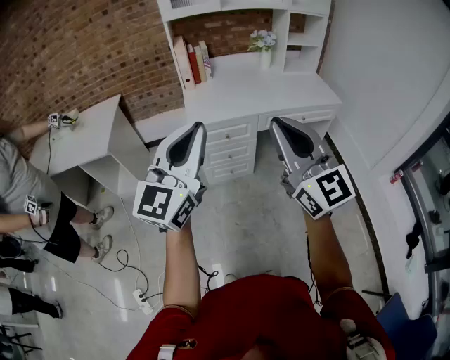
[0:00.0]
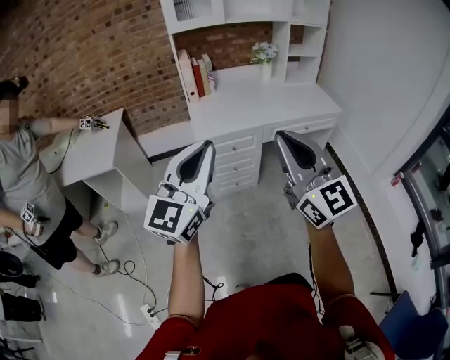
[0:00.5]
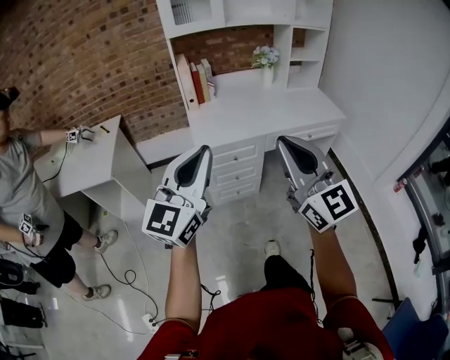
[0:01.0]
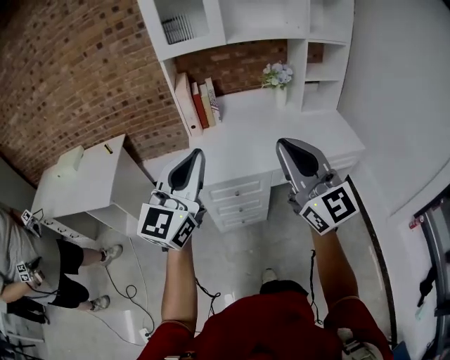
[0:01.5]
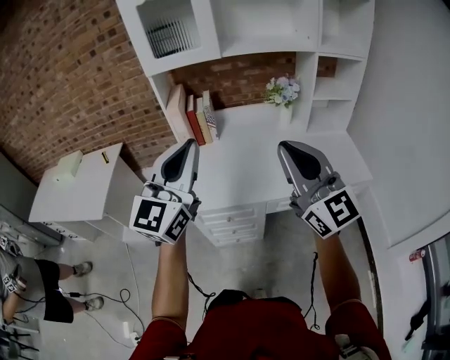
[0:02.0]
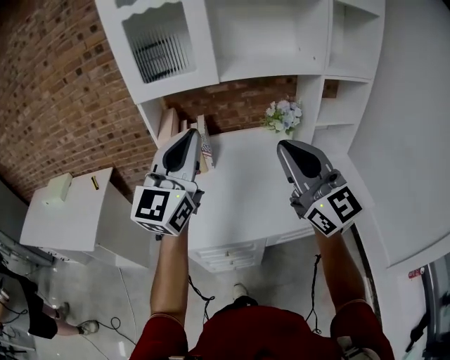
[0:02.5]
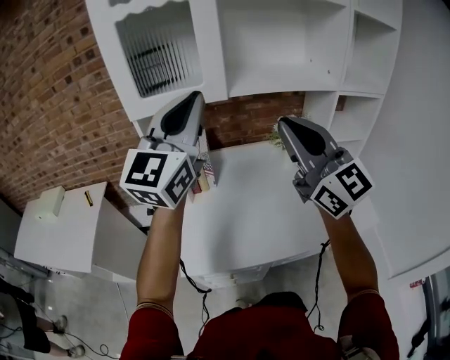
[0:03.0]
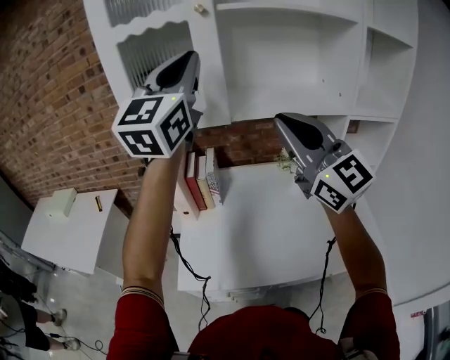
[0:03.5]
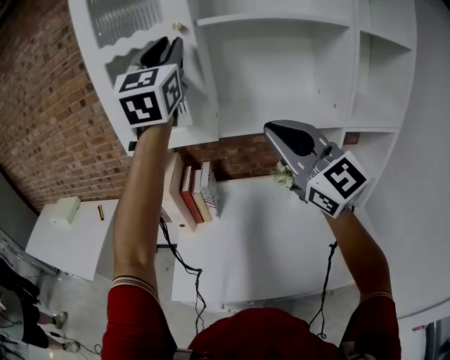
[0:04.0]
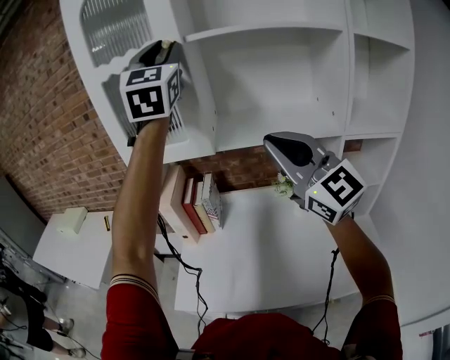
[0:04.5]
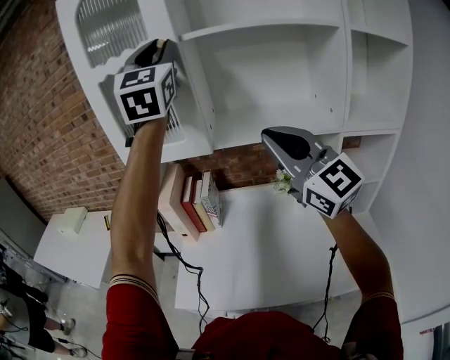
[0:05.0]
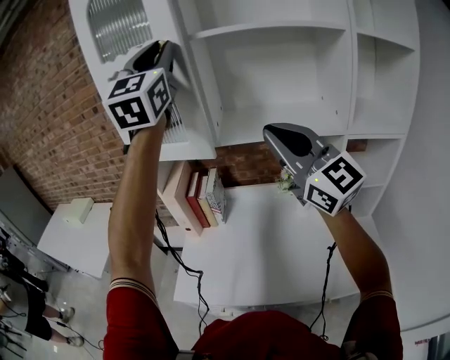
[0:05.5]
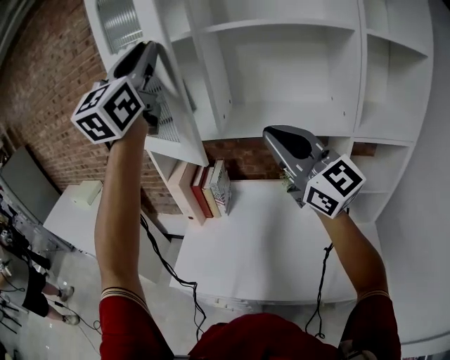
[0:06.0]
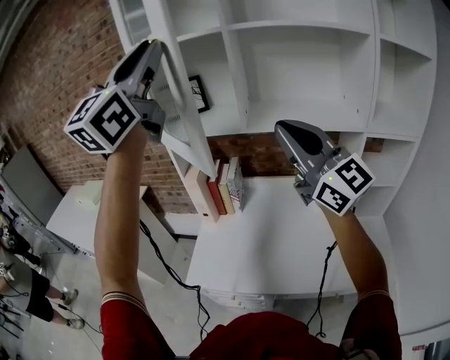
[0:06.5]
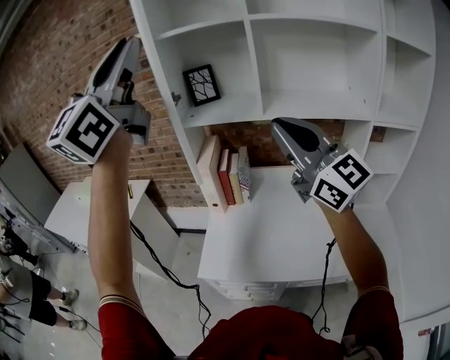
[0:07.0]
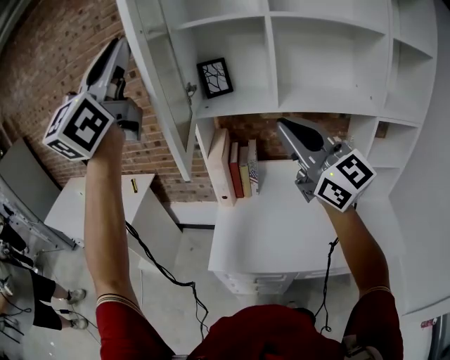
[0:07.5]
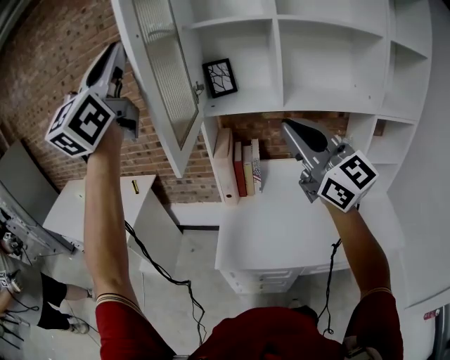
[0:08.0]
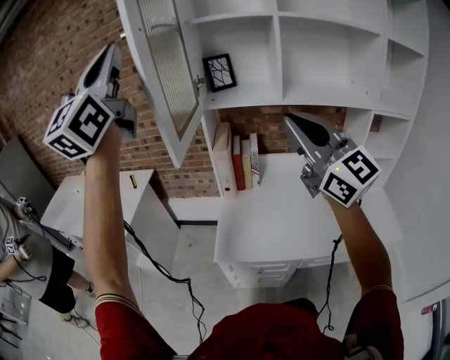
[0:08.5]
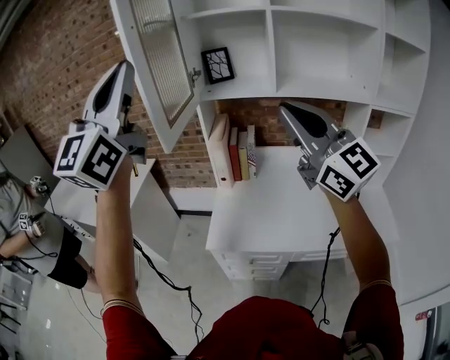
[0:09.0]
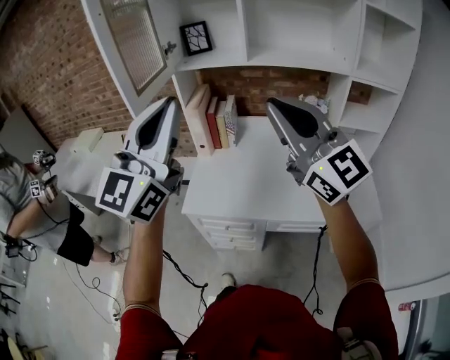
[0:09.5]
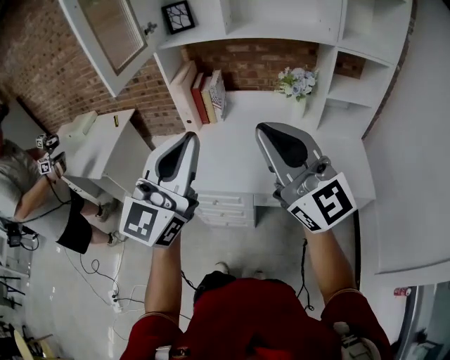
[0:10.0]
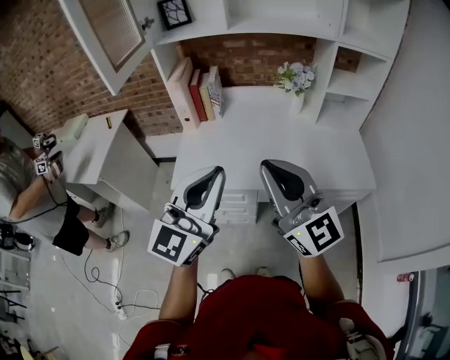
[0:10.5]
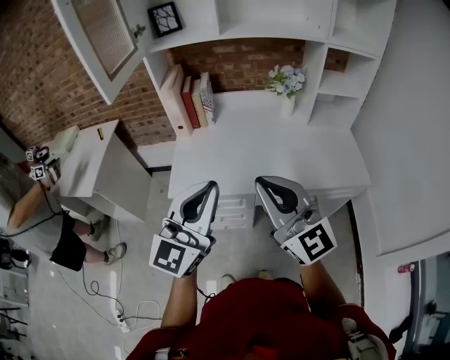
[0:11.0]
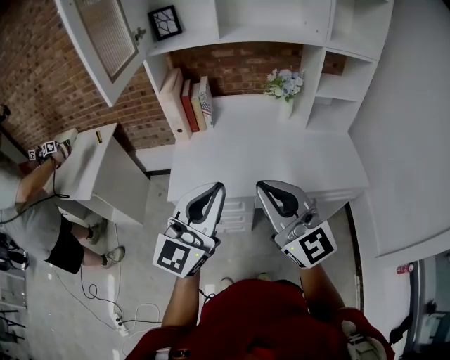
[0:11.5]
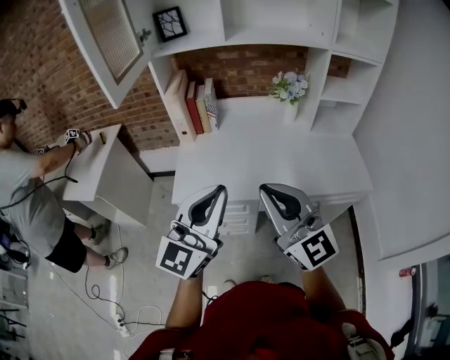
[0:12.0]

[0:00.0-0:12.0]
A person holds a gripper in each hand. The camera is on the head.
0:00.0 to 0:02.0: The grippers both shift forward by roughly 40 cm.
0:02.0 to 0:04.0: Both grippers travel together forward and upward, approximately 40 cm. The left gripper turns by about 30 degrees.
0:04.0 to 0:06.0: The left gripper heads backward, covering approximately 10 cm.
0:06.0 to 0:08.0: The two grippers go approximately 25 cm to the left.
0:08.0 to 0:10.0: The right gripper shifts roughly 25 cm backward, to the right and downward, while the left gripper goes about 50 cm downward, to the right and backward.
0:10.0 to 0:12.0: The left gripper goes some 10 cm downward. The right gripper goes about 15 cm downward and to the left.

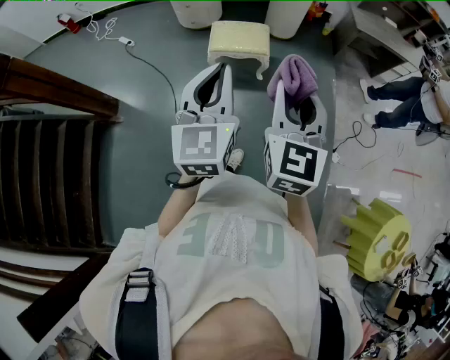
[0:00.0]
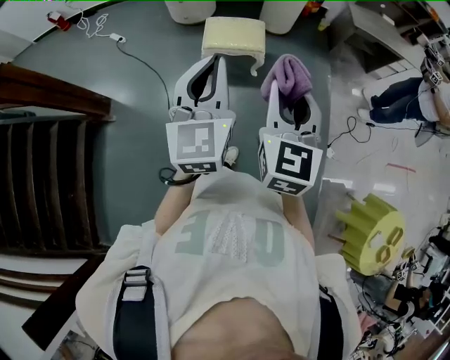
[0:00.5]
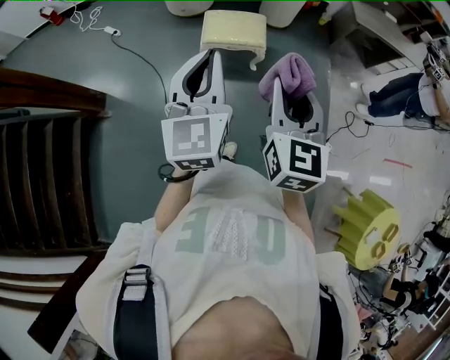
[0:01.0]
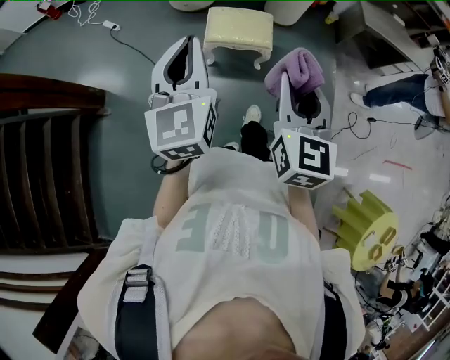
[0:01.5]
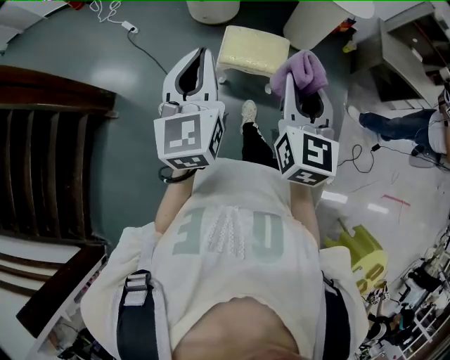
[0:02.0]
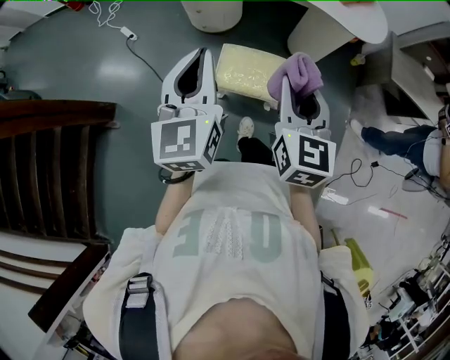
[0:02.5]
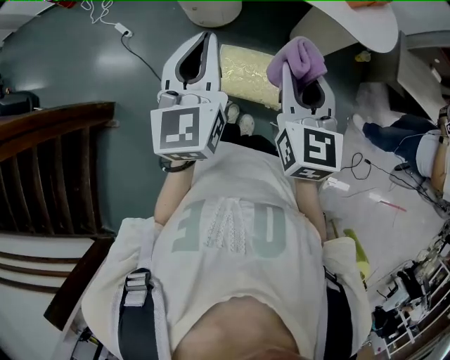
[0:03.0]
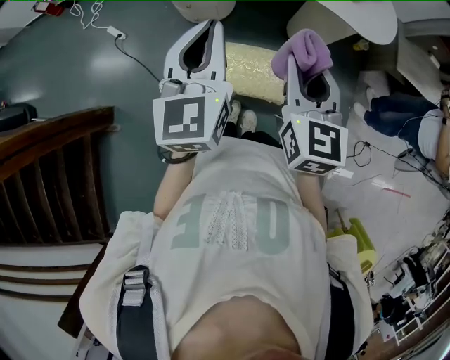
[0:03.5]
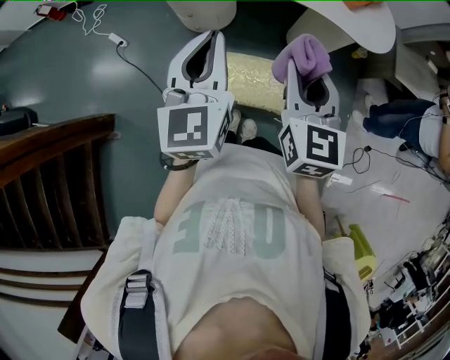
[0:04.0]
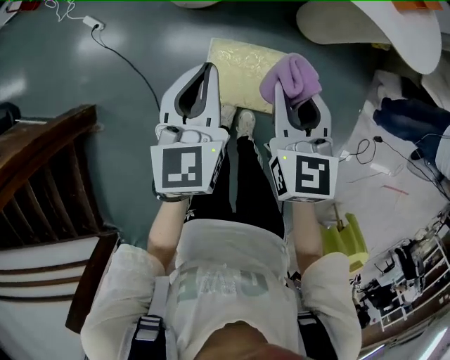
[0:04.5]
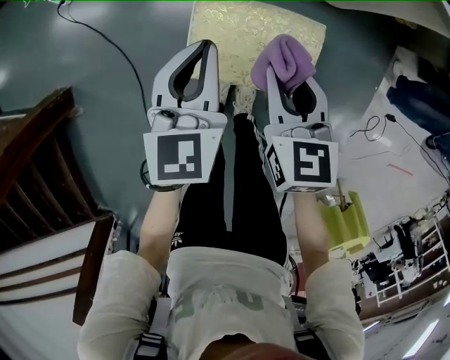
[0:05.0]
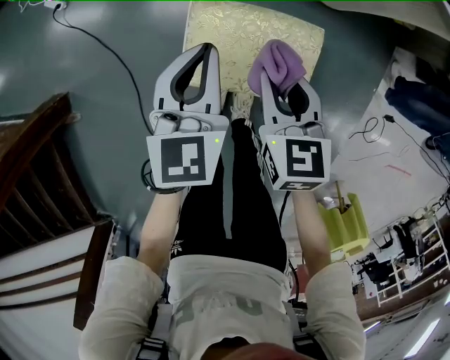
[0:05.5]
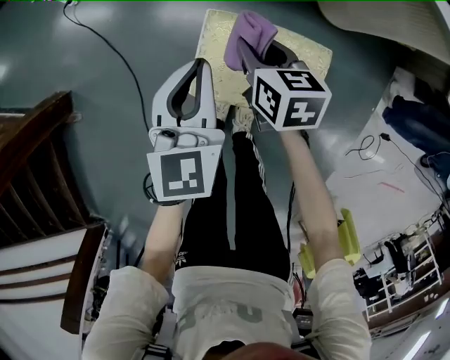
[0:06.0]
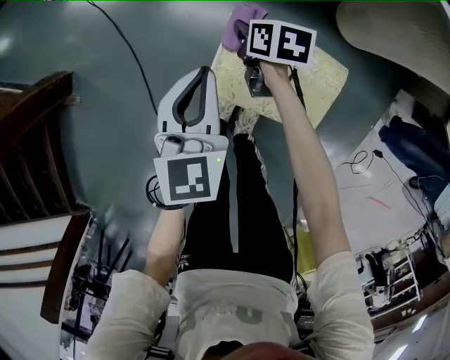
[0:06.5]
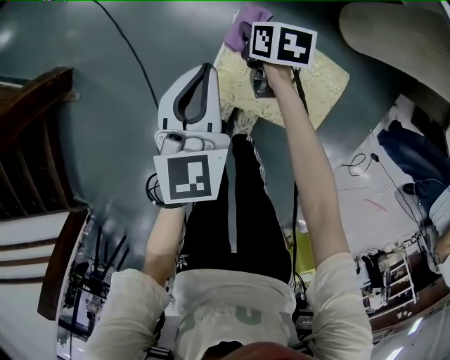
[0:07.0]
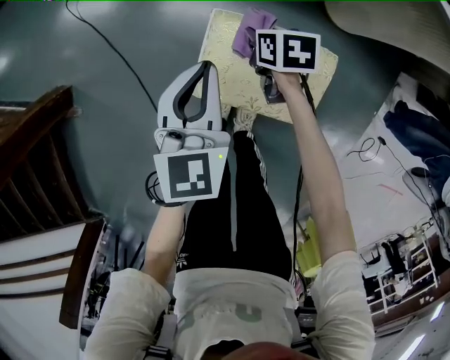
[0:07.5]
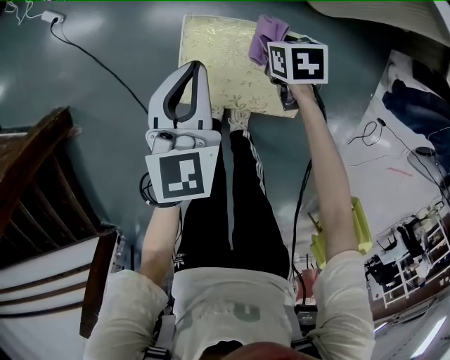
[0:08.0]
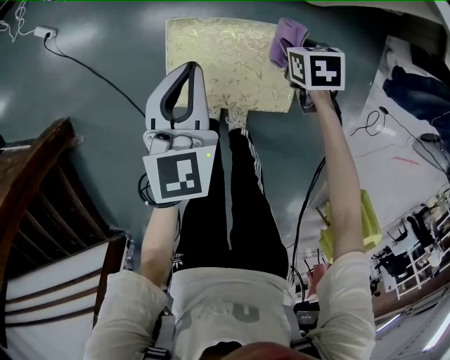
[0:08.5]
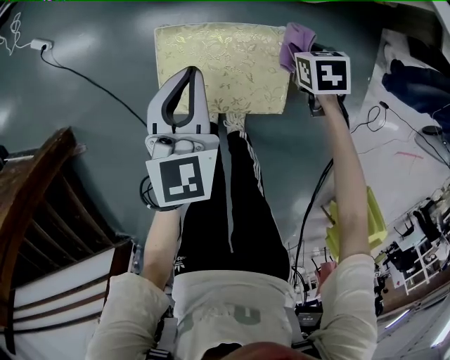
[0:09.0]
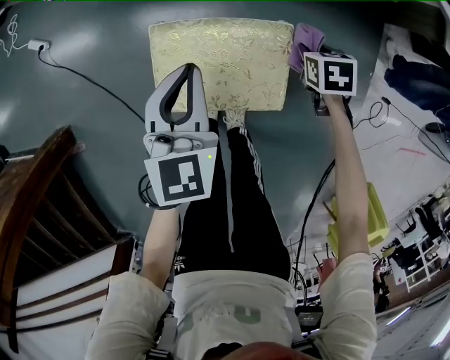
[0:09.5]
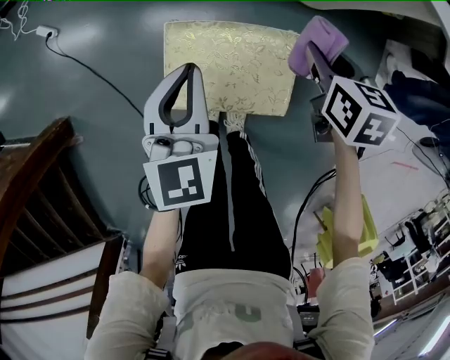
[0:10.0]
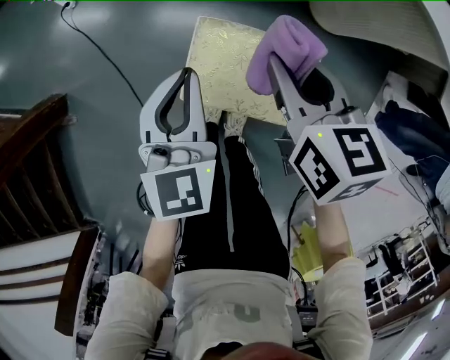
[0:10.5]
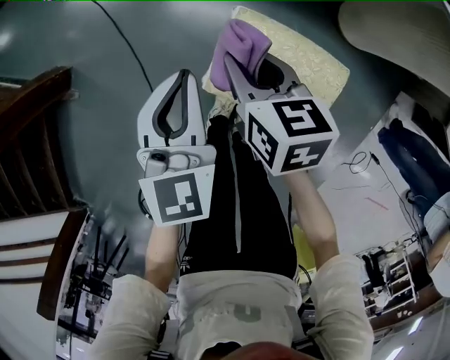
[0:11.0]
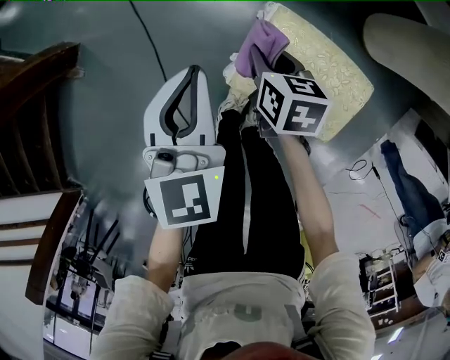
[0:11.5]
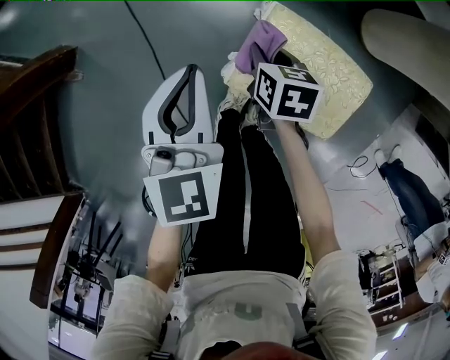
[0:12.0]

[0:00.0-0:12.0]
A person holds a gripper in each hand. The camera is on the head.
0:00.0 to 0:02.0: The right gripper shifts roughly 25 cm forward. The left gripper heads forward and to the left, covering about 25 cm.
0:02.0 to 0:04.0: The two grippers go some 35 cm forward.
0:04.0 to 0:06.0: The two grippers go about 50 cm downward. The right gripper changes its angle by about 40 degrees, while the left gripper changes its angle by about 20 degrees.
0:06.0 to 0:08.0: The right gripper shifts about 15 cm to the right and downward, and swivels roughly 20 degrees.
0:08.0 to 0:10.0: The right gripper shifts approximately 15 cm upward.
0:10.0 to 0:12.0: The left gripper ends up roughly 20 cm from where it was, and changes its angle by some 20 degrees. The right gripper moves approximately 35 cm, and turns by roughly 20 degrees.

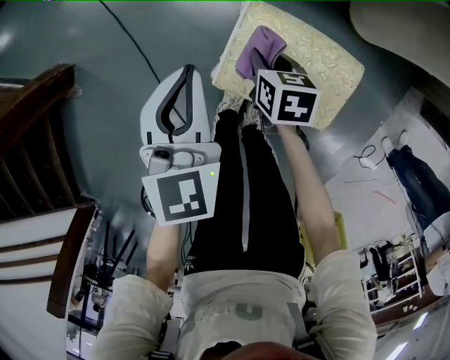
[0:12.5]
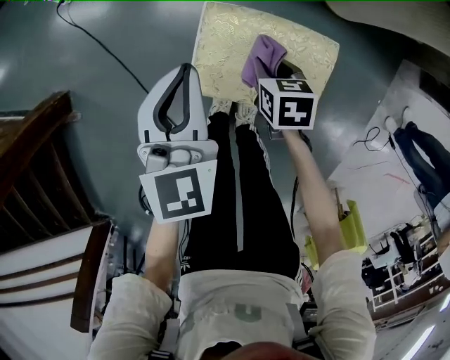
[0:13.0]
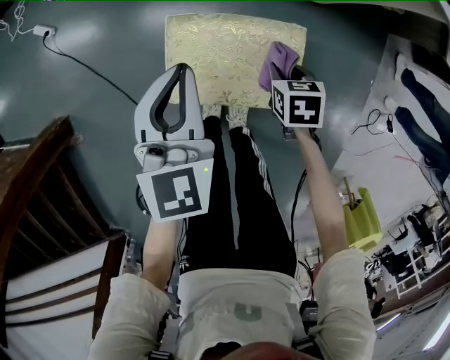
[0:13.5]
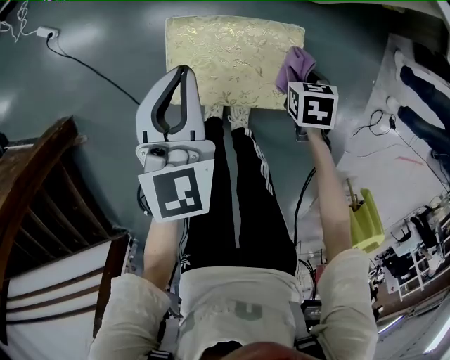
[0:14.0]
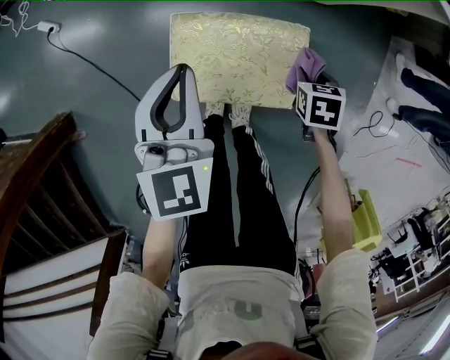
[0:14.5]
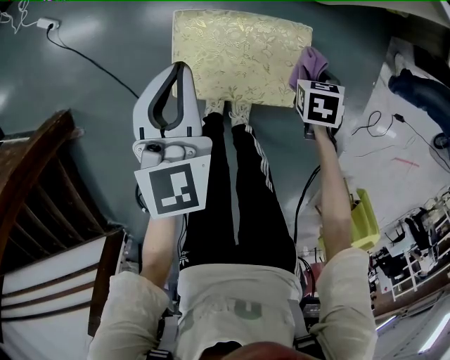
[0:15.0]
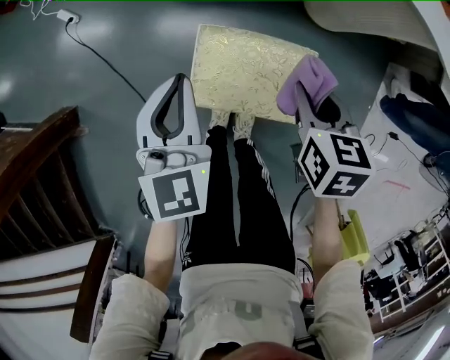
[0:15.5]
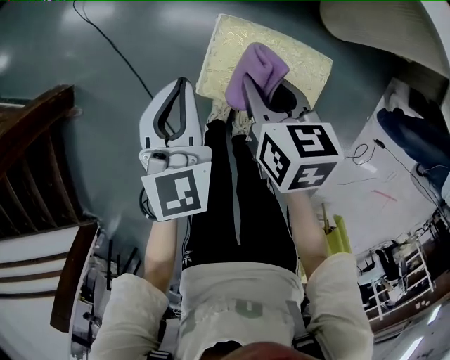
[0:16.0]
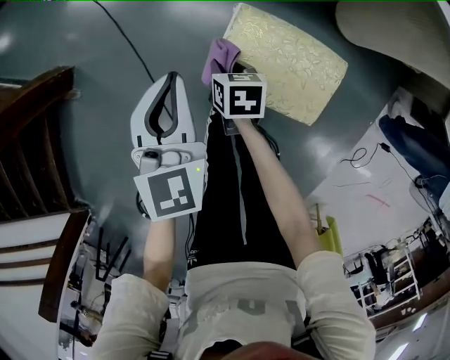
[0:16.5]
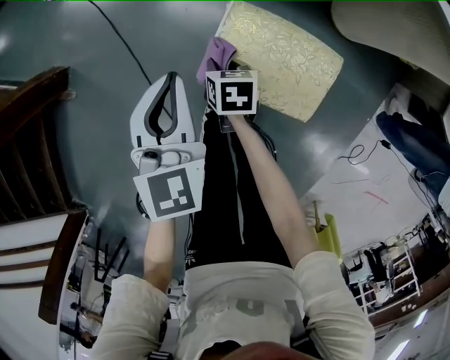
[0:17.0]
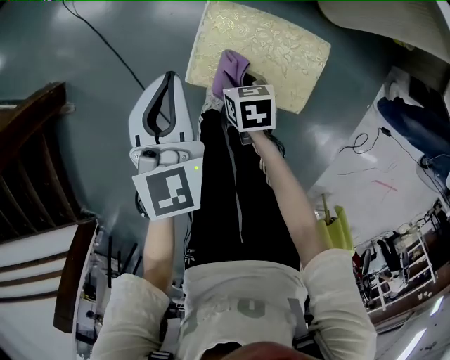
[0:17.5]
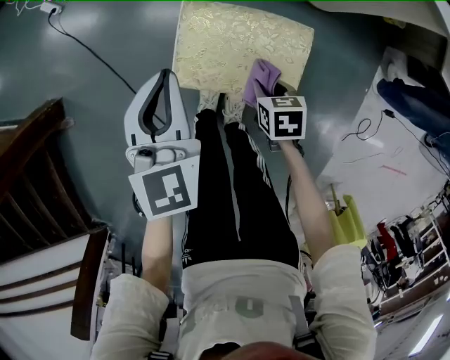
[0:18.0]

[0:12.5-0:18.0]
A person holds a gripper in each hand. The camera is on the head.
0:12.5 to 0:14.5: The right gripper moves some 30 cm, and changes its angle by about 20 degrees; the left gripper ends up about 15 cm from where it was.
0:14.5 to 0:16.0: The left gripper ends up about 10 cm from where it was; the right gripper changes place by some 30 cm, and turns by roughly 30 degrees.
0:16.0 to 0:18.0: The right gripper moves downward and backward, some 25 cm, and turns by approximately 20 degrees. The left gripper ends up some 5 cm from where it was.
